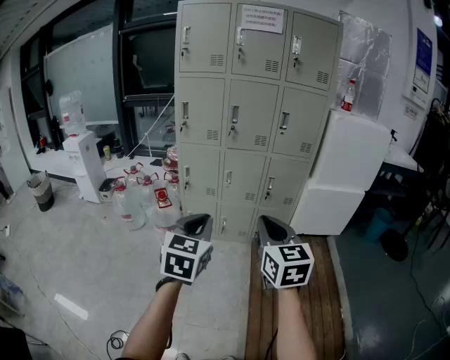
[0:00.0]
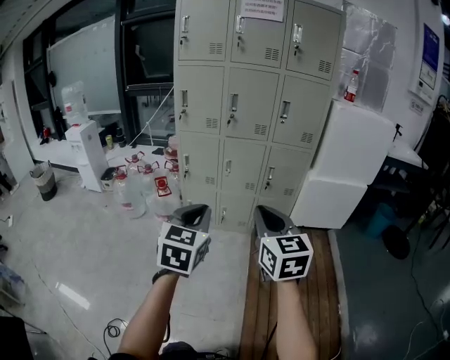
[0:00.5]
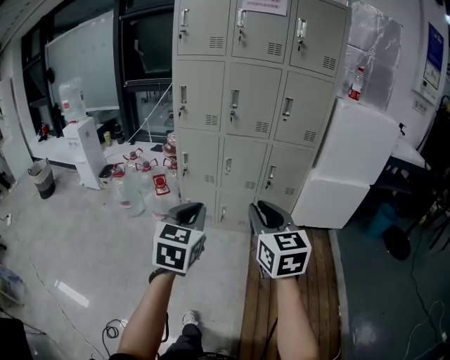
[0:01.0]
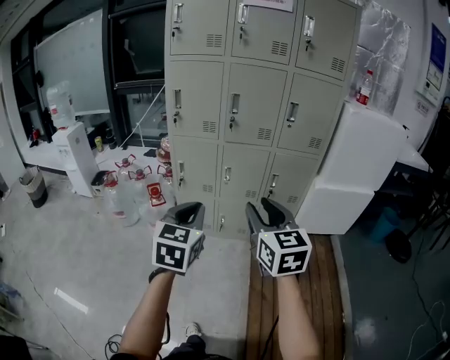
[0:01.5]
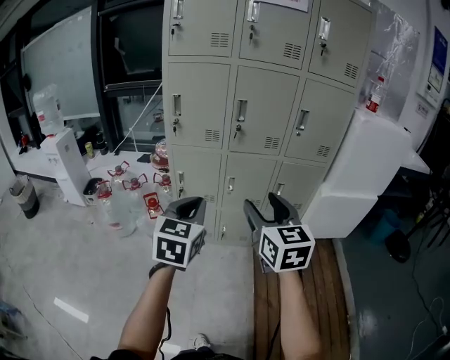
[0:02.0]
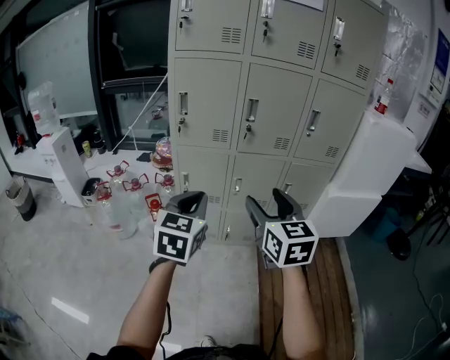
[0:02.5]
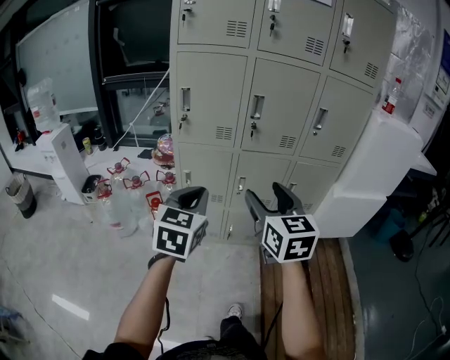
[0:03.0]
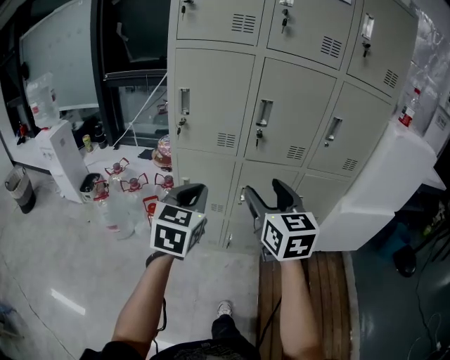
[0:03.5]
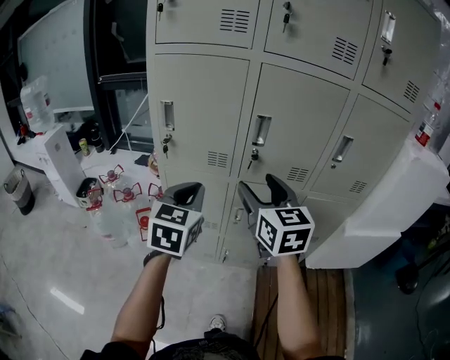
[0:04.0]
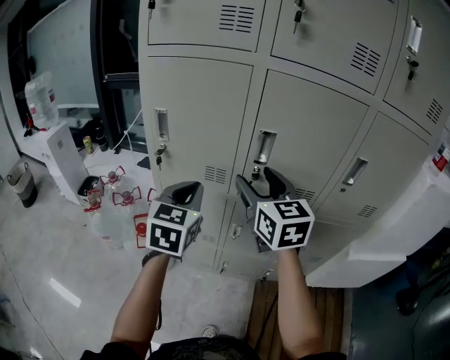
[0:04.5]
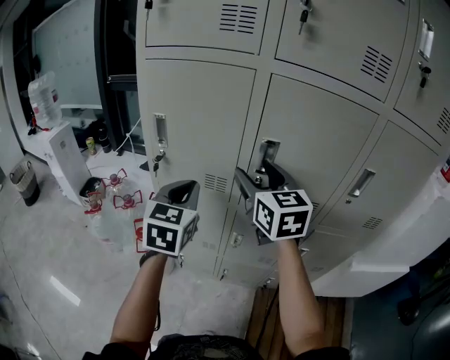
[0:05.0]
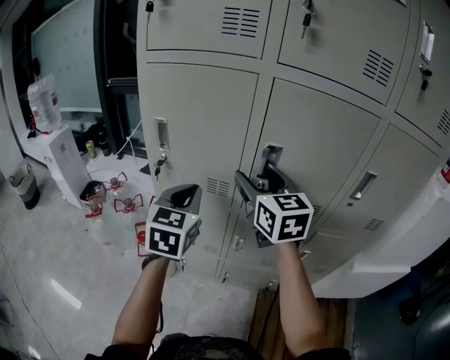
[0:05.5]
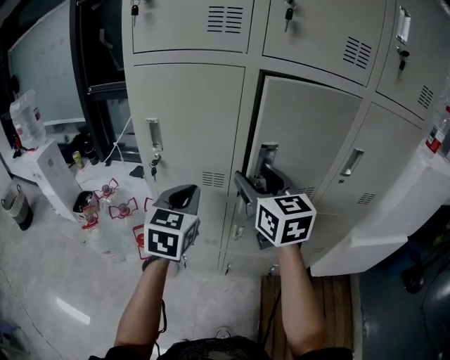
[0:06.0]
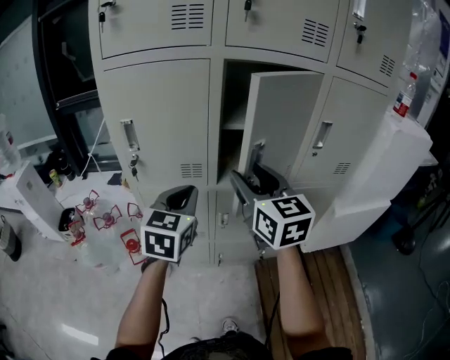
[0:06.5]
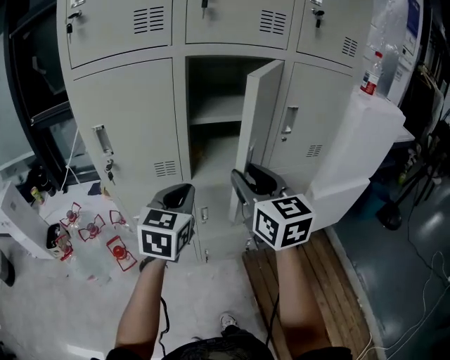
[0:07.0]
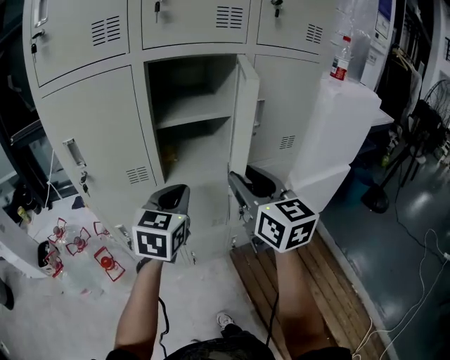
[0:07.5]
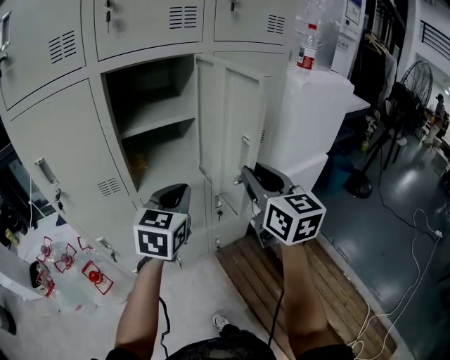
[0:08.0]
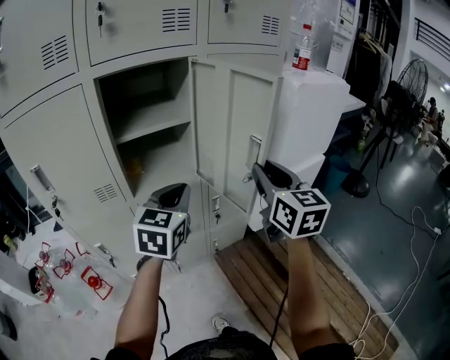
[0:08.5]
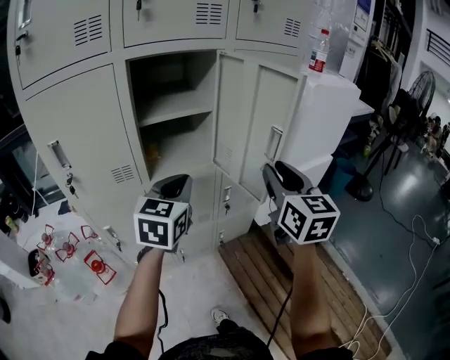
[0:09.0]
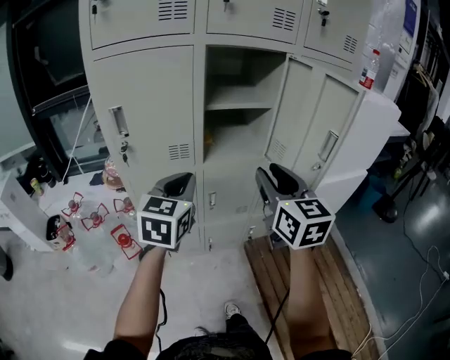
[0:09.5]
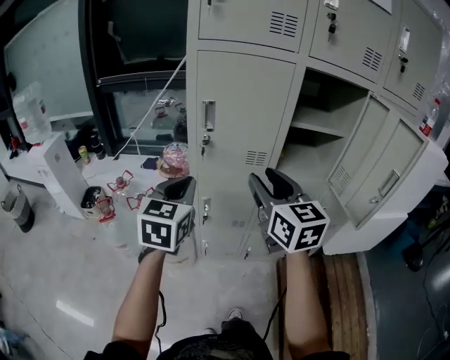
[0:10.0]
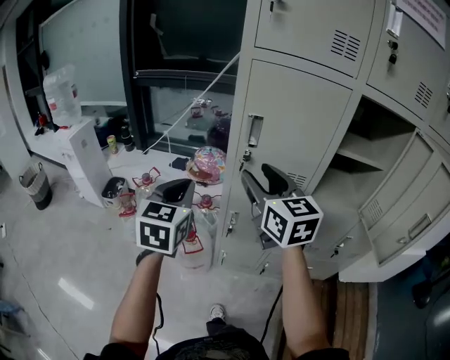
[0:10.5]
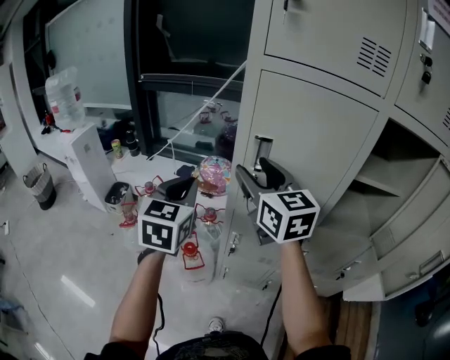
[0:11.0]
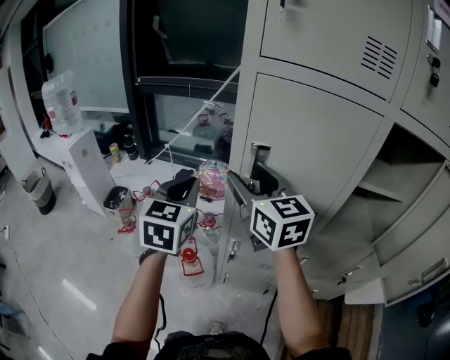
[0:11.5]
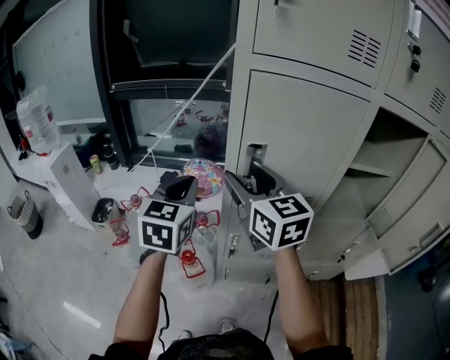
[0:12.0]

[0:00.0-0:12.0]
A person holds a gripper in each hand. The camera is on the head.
0:00.0 to 0:02.0: The two grippers go roughly 25 cm forward. The right gripper opens up.
0:02.0 to 0:04.0: Both grippers move forward, some 30 cm.
0:04.0 to 0:06.0: The grippers both shift forward by roughly 10 cm.
0:06.0 to 0:08.0: The right gripper changes place by some 30 cm, swivels roughly 30 degrees, and closes. The left gripper shifts by some 25 cm, and turns by about 30 degrees.
0:08.0 to 0:10.0: The left gripper shifts by about 40 cm, and swivels approximately 30 degrees. The right gripper ends up about 40 cm from where it was, and rotates some 30 degrees.
0:10.0 to 0:12.0: Both grippers travel together forward and to the left, approximately 20 cm.

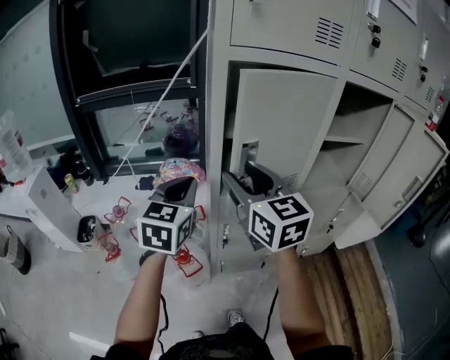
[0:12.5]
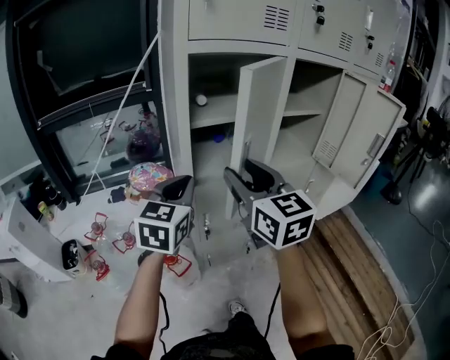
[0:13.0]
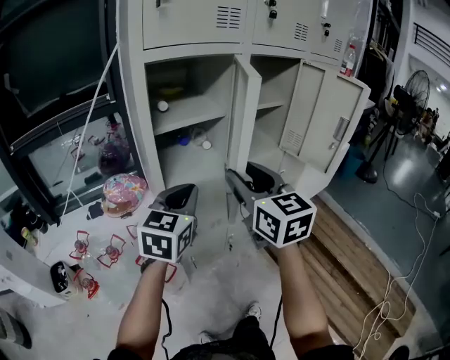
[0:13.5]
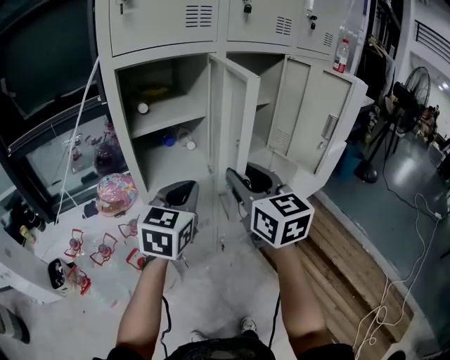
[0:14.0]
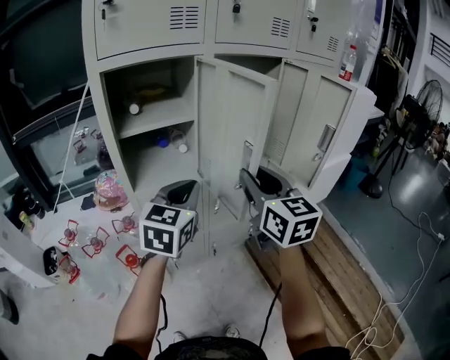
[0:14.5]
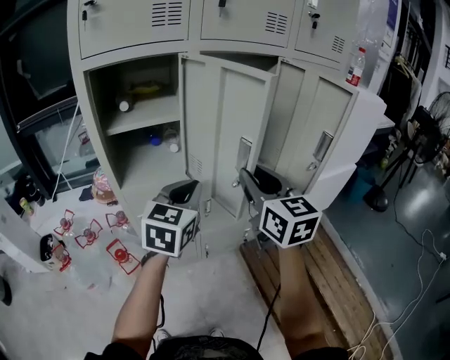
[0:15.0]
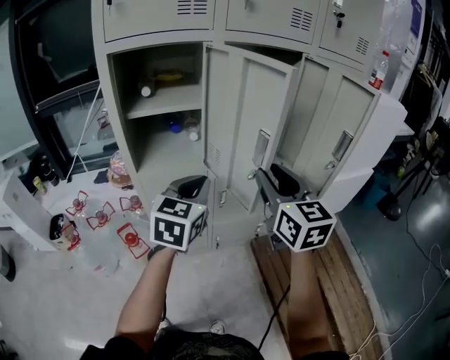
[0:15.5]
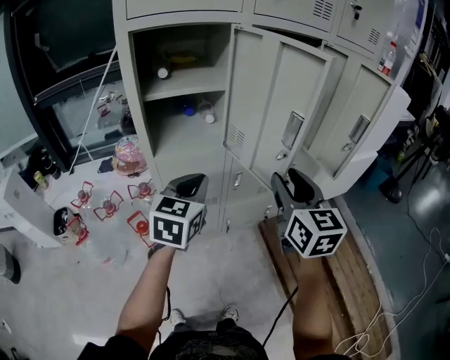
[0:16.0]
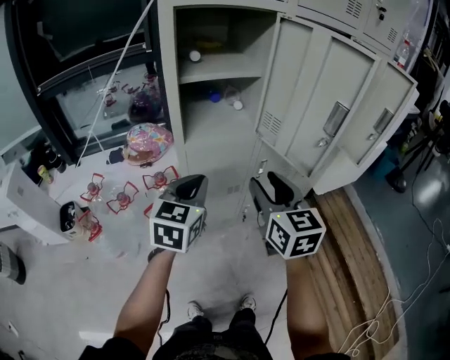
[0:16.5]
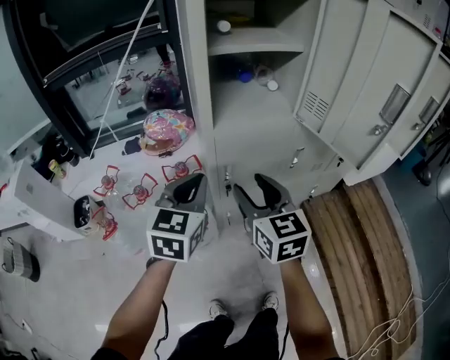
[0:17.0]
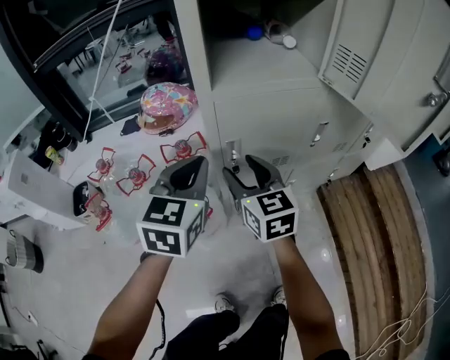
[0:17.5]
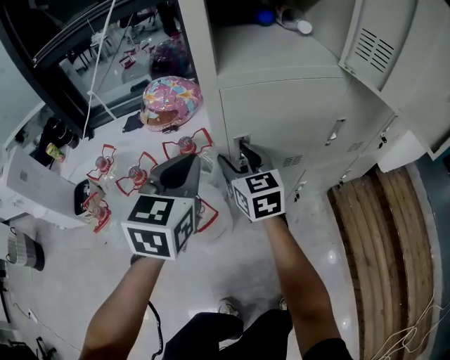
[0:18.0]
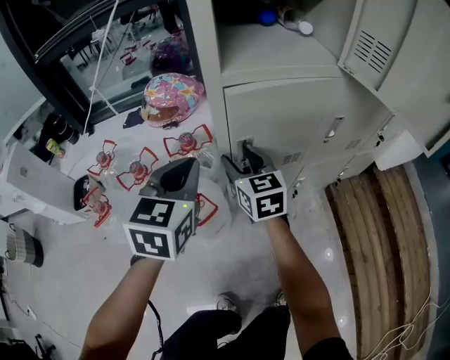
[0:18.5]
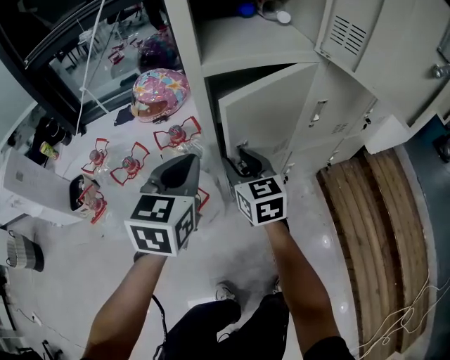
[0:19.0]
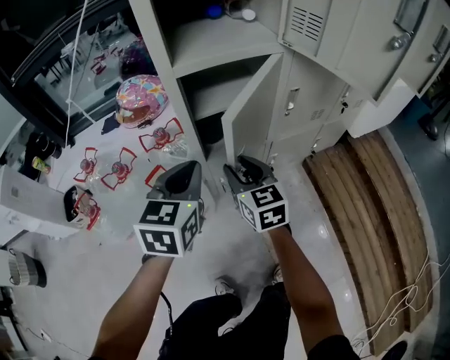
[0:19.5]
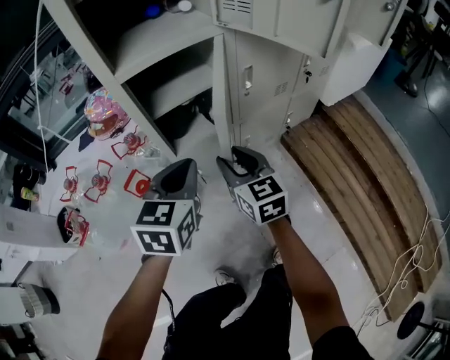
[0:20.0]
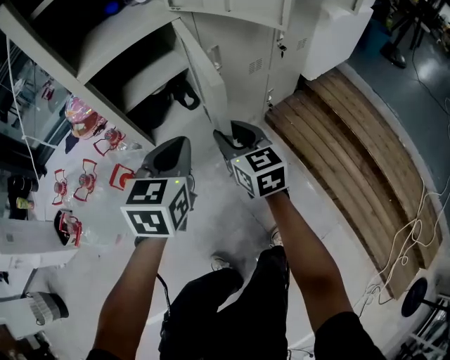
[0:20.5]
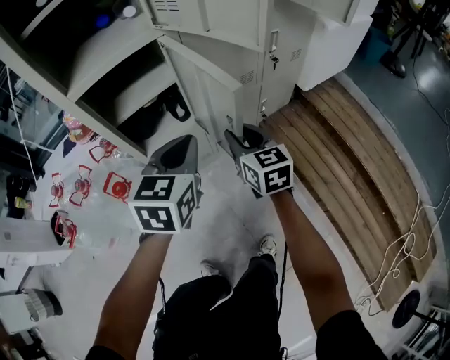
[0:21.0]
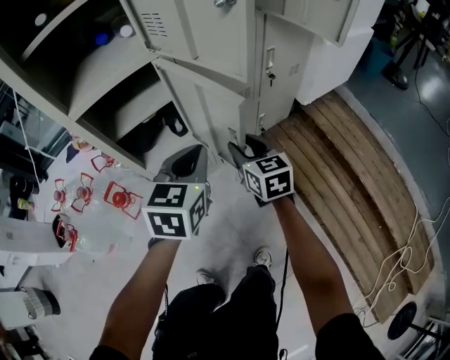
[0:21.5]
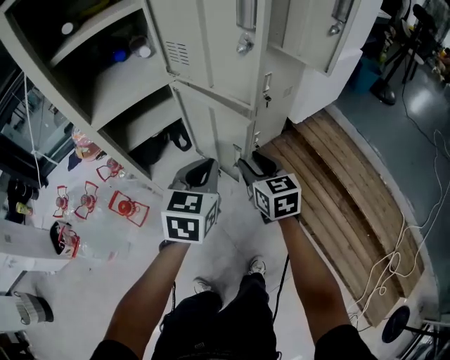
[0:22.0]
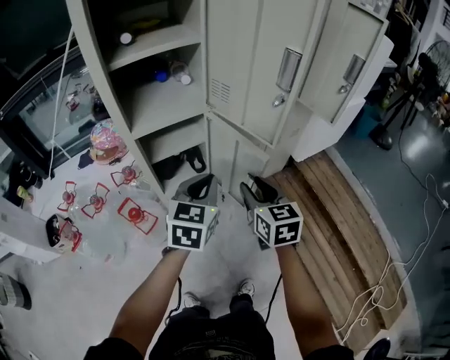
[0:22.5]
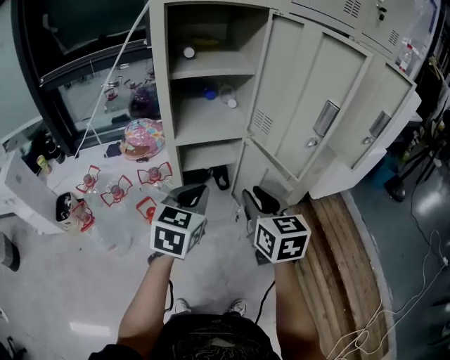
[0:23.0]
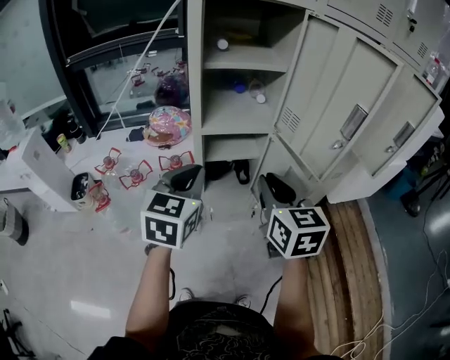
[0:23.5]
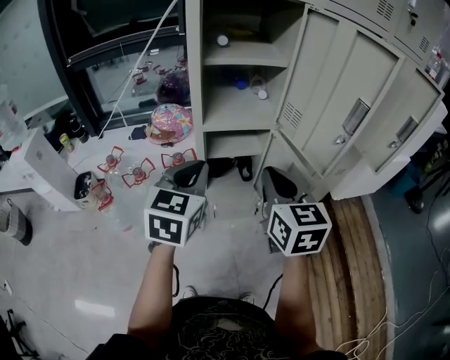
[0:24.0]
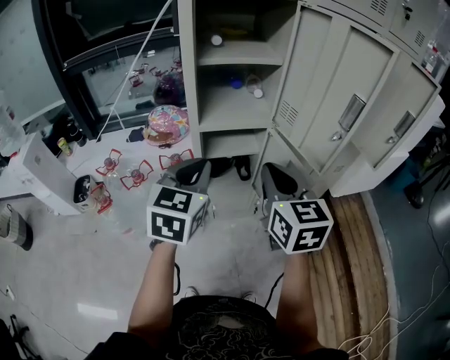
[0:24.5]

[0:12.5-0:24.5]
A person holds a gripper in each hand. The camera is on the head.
0:12.5 to 0:14.5: The right gripper moves approximately 30 cm, and swivels about 20 degrees; the left gripper changes place by approximately 30 cm, and rotates about 20 degrees.
0:14.5 to 0:16.5: The grippers both shift to the left and downward by about 15 cm.
0:16.5 to 0:18.5: The right gripper goes some 40 cm downward, forward and to the left. The left gripper shifts roughly 25 cm downward, to the left and forward.
0:18.5 to 0:20.5: The right gripper travels to the right and backward by approximately 25 cm, while the left gripper is displaced to the right by approximately 20 cm.
0:20.5 to 0:22.5: Both grippers travel together upward and to the right, some 15 cm.
0:22.5 to 0:24.5: The left gripper goes approximately 20 cm to the left and upward. Meanwhile the right gripper travels upward and to the left by some 20 cm, and closes its fingers.

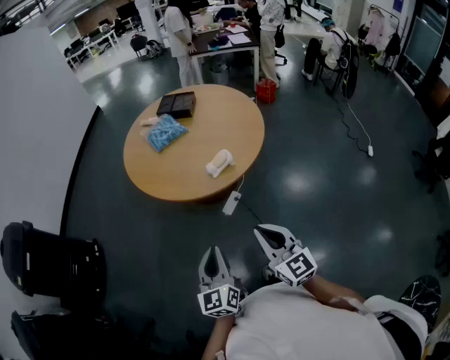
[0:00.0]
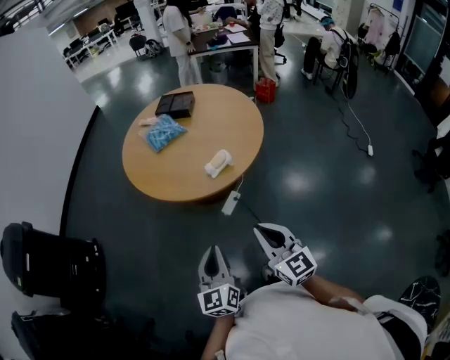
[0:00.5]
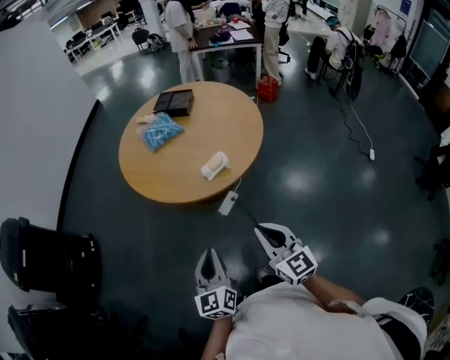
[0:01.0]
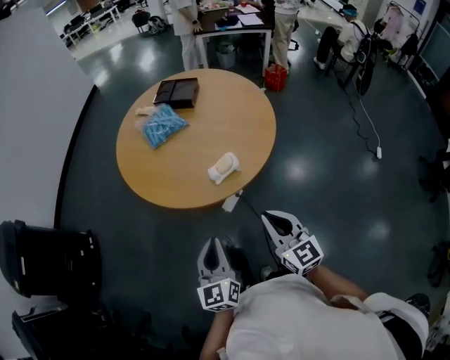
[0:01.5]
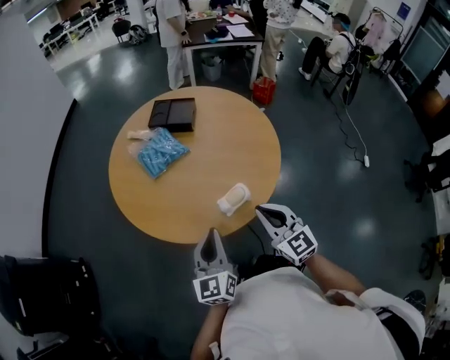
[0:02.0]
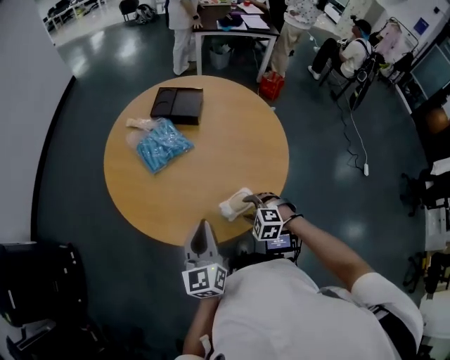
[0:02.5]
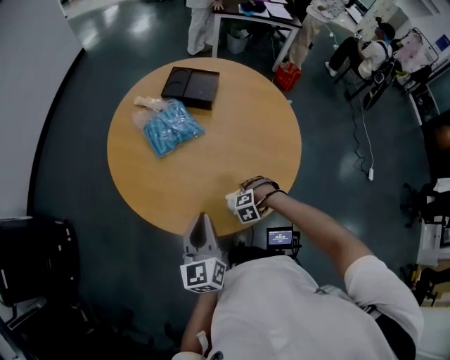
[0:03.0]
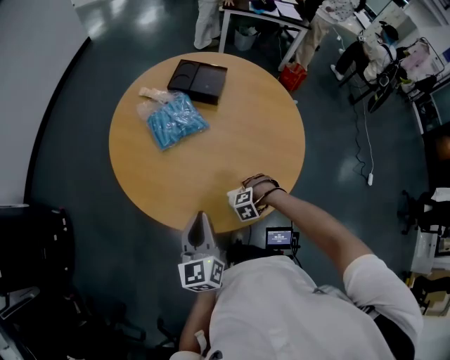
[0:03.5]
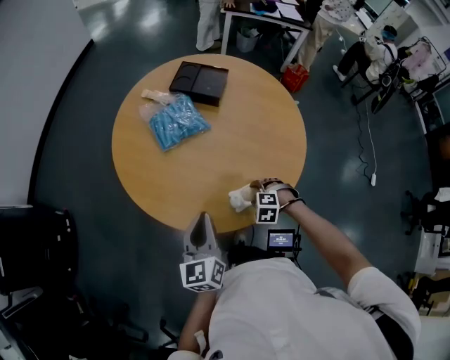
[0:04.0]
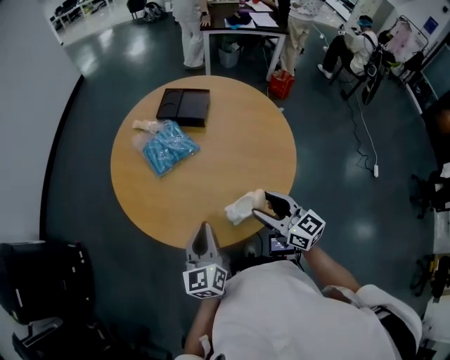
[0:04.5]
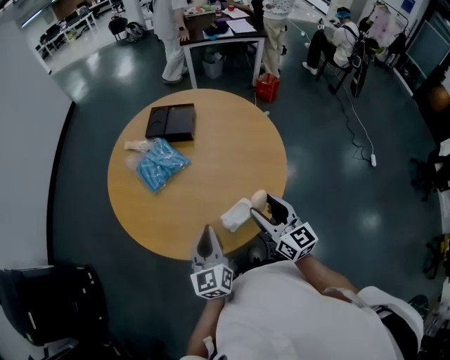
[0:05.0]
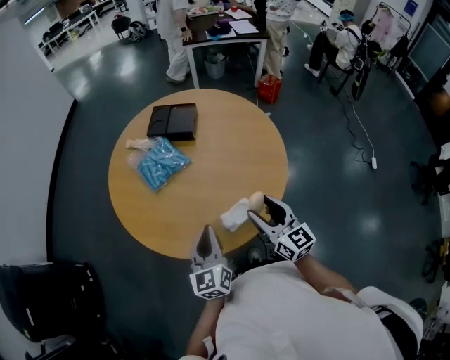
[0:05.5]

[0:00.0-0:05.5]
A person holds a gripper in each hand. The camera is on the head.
0:00.0 to 0:02.0: Both grippers travel together forward, some 30 cm.
0:02.0 to 0:03.5: The left gripper changes place by roughly 10 cm. The right gripper is displaced downward by approximately 35 cm, points its fingers about 70 degrees further downward, and opens.
0:03.5 to 0:05.5: The left gripper shifts by approximately 5 cm, while the right gripper shifts approximately 30 cm upward, and tilts its fingers some 70 degrees upward.
